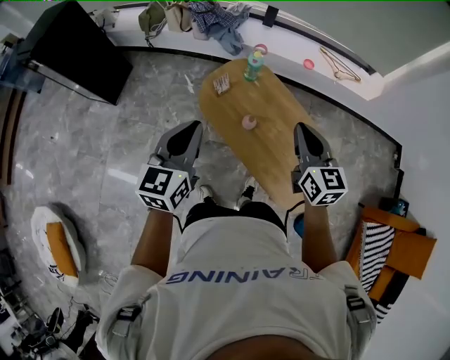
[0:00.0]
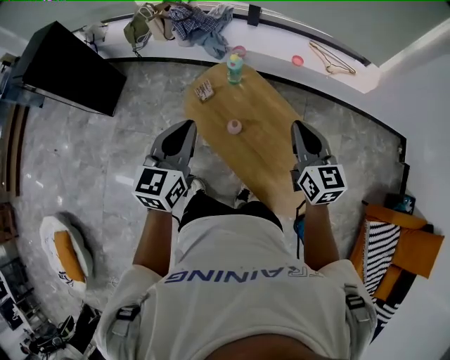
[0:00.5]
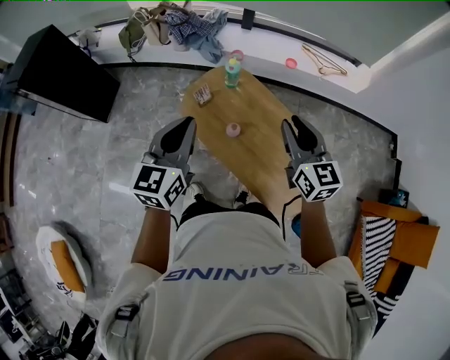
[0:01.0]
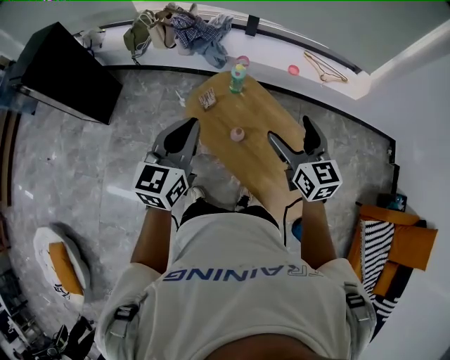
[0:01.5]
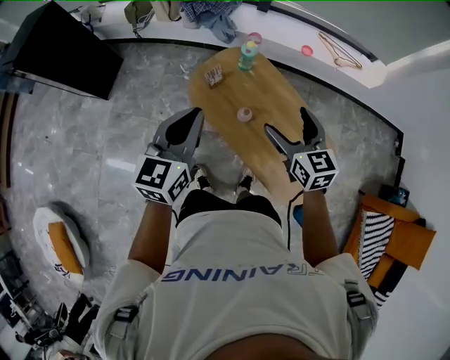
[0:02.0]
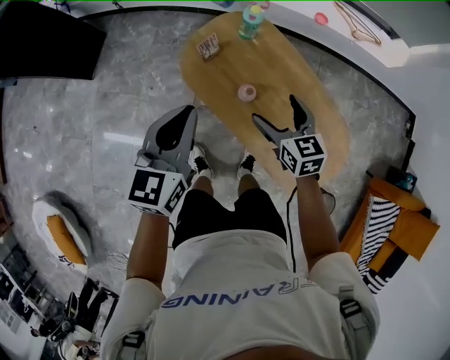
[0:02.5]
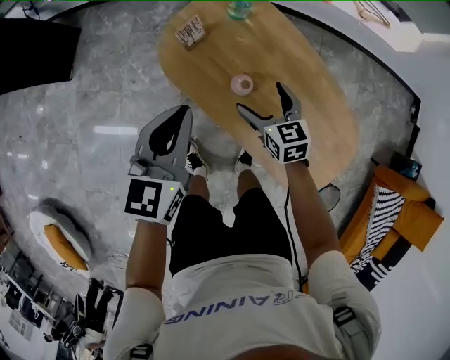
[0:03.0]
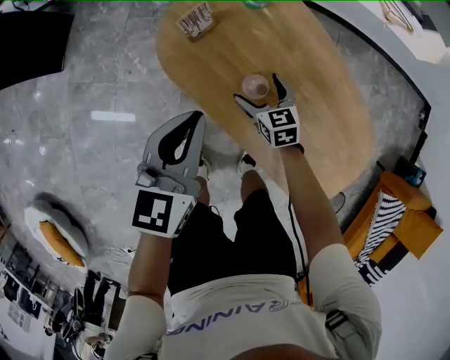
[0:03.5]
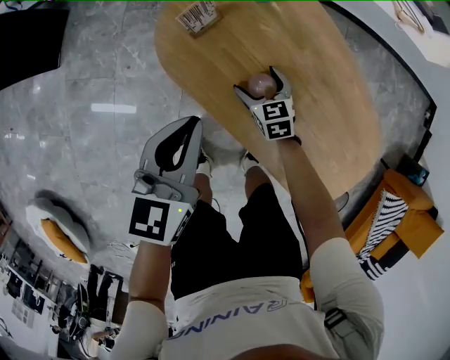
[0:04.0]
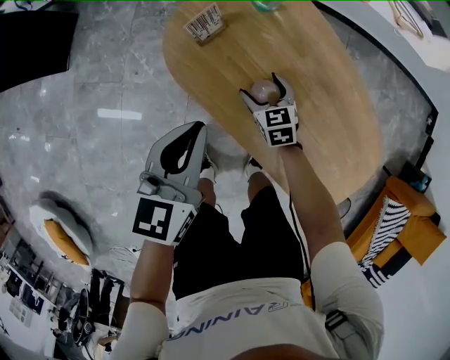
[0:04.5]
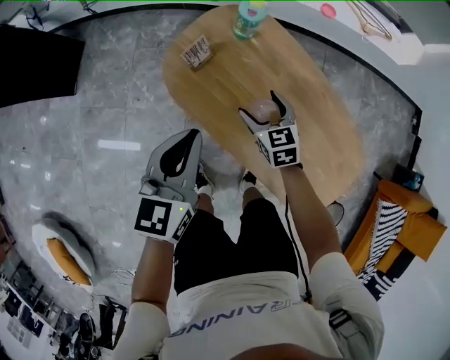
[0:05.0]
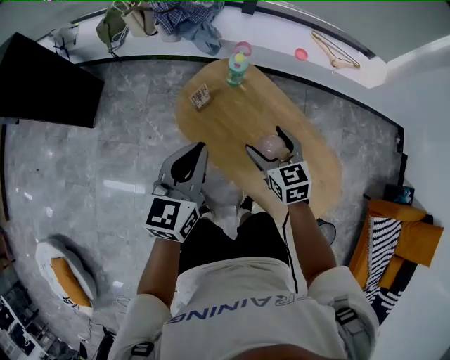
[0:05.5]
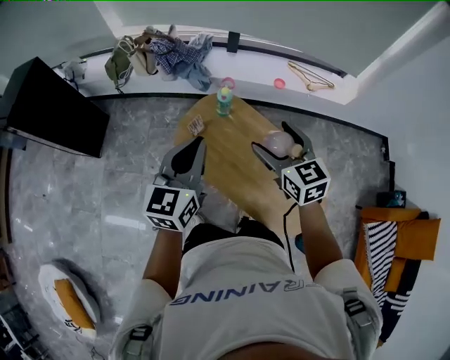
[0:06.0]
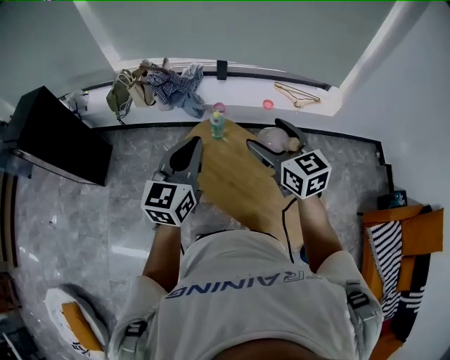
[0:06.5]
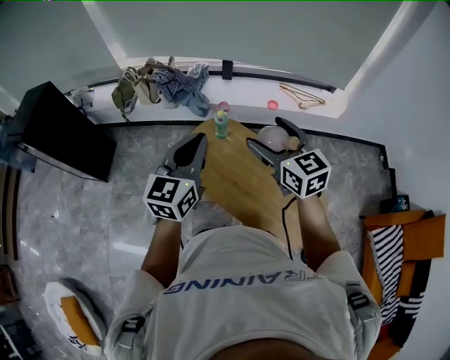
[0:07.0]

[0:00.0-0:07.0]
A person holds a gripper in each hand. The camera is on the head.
0.0 to 2.0 s: The left gripper goes roughly 5 cm forward, and reaches roughly 10 cm to the right, then returns, while the right gripper shifts about 5 cm downward, reaches roughly 10 cm to the right, then returns, and opens its fingers.
2.0 to 3.5 s: The left gripper shifts approximately 30 cm downward. The right gripper is displaced downward by approximately 50 cm, and rotates roughly 20 degrees.
3.5 to 5.0 s: The right gripper is displaced upward by roughly 10 cm; the left gripper heads upward, covering approximately 5 cm.
5.0 to 7.0 s: The grippers both shift upward by some 40 cm. The left gripper rotates about 20 degrees. The right gripper changes its angle by some 30 degrees.

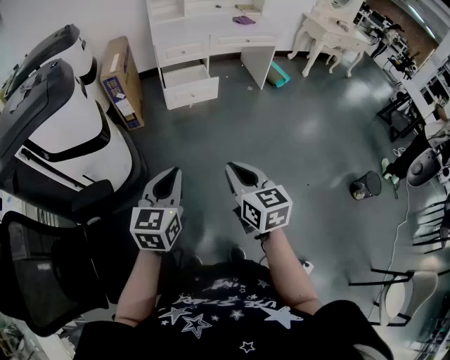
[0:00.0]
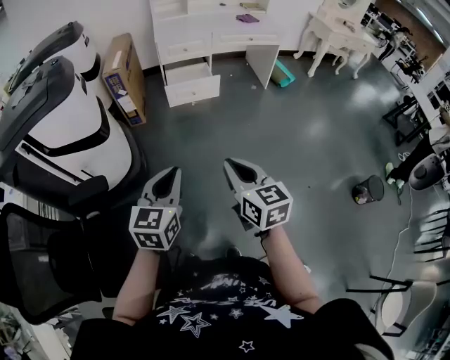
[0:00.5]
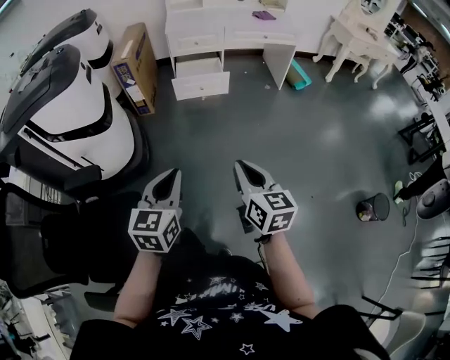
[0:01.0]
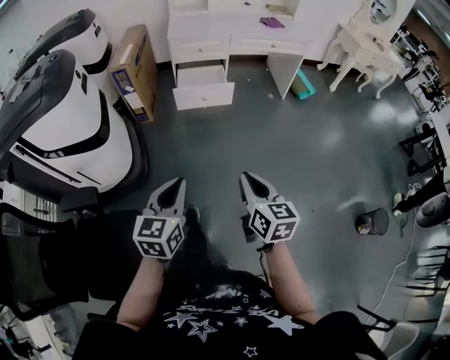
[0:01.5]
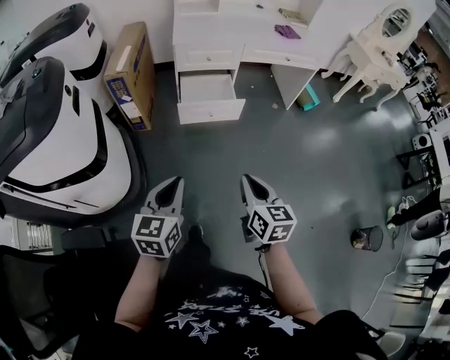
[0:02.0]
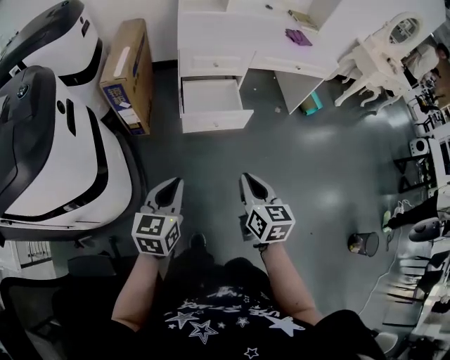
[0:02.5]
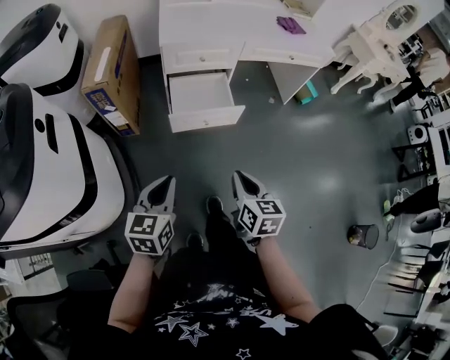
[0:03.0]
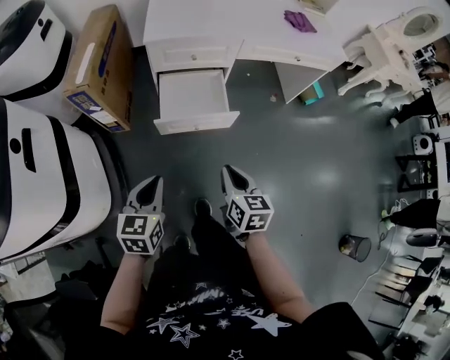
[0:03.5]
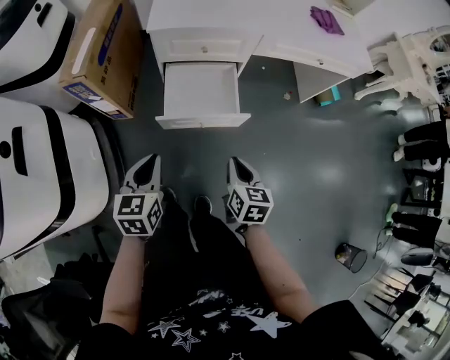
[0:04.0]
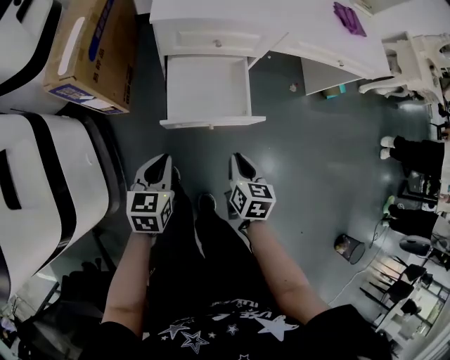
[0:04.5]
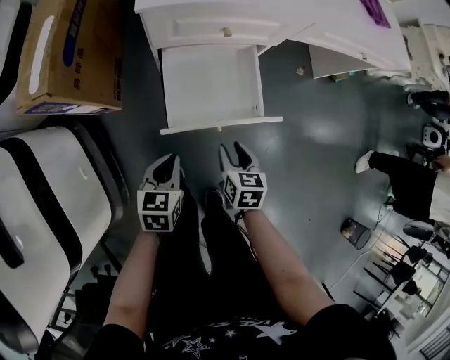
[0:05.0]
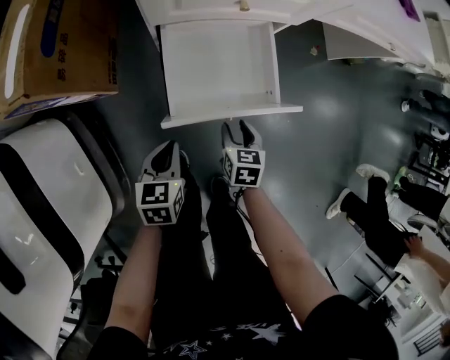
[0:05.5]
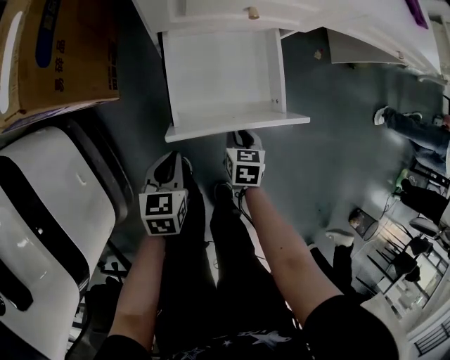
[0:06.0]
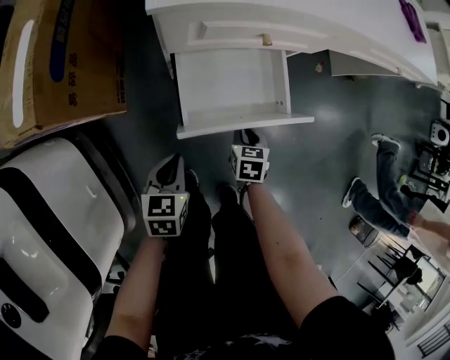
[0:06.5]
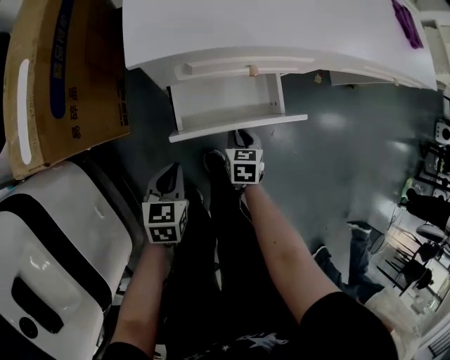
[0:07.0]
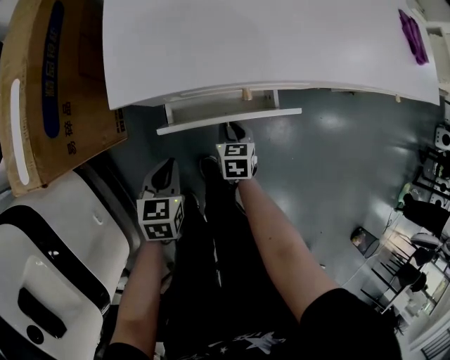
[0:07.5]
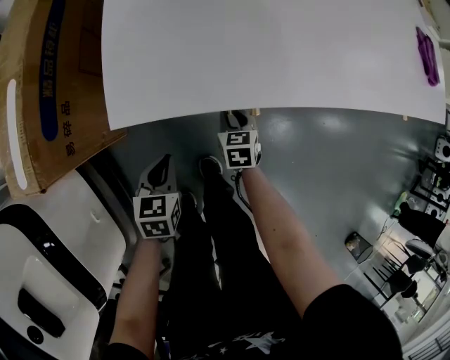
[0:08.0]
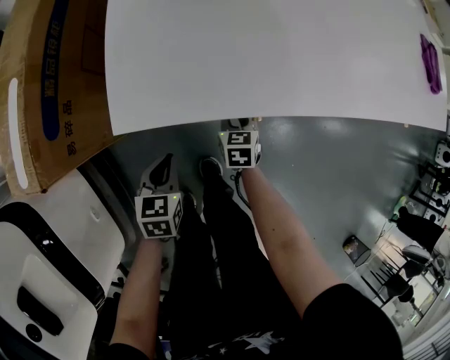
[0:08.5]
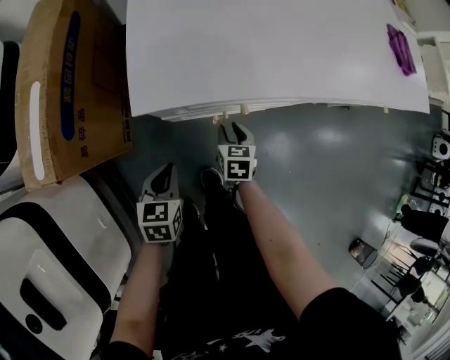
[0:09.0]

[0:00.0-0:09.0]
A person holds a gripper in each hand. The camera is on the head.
0.0 to 2.0 s: The two grippers go approximately 25 cm forward.
2.0 to 4.5 s: The two grippers go about 40 cm forward and downward. The left gripper swivels roughly 20 degrees; the right gripper changes its angle by about 20 degrees.
4.5 to 7.0 s: The right gripper travels downward, forward and to the left by some 30 cm. The left gripper heads downward and forward, covering roughly 20 cm.
7.0 to 9.0 s: Both grippers travel together forward, approximately 10 cm.

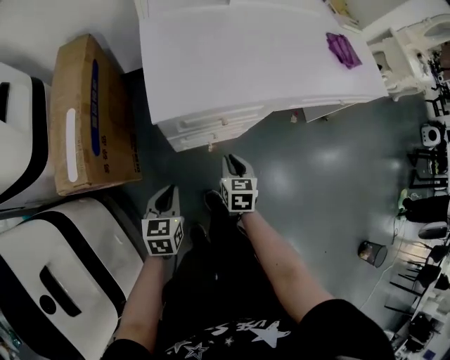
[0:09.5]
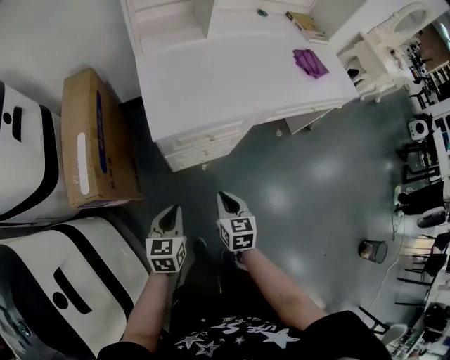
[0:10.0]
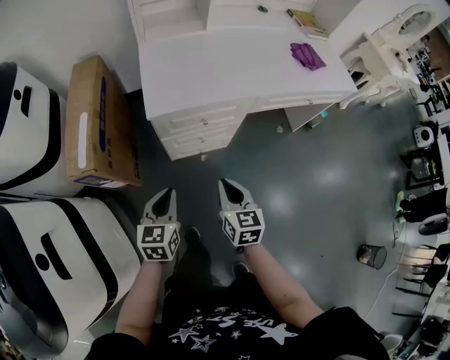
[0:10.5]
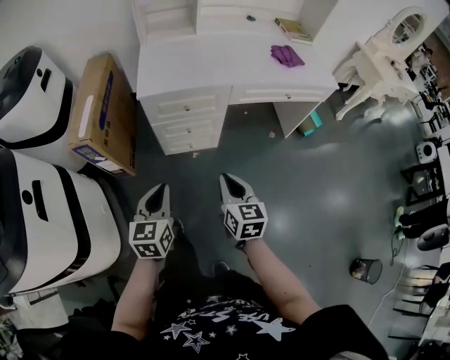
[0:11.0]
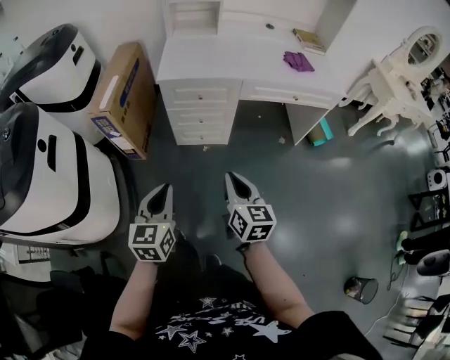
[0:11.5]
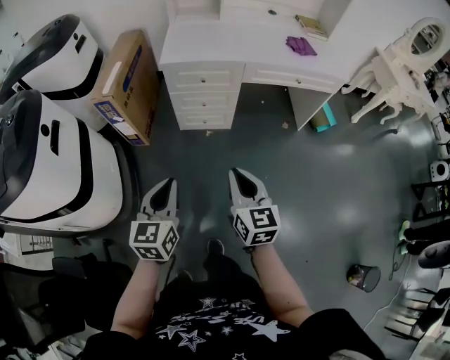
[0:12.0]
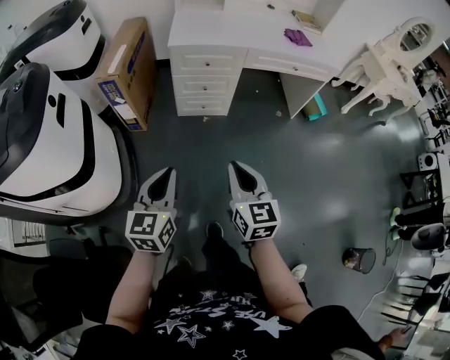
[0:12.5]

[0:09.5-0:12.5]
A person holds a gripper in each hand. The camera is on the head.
9.5 to 11.0 s: The two grippers go some 35 cm backward, upward and to the right. The right gripper rotates roughly 20 degrees.
11.0 to 12.5 s: Both grippers travel together backward, approximately 25 cm.

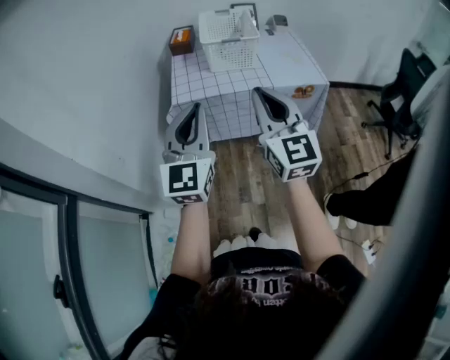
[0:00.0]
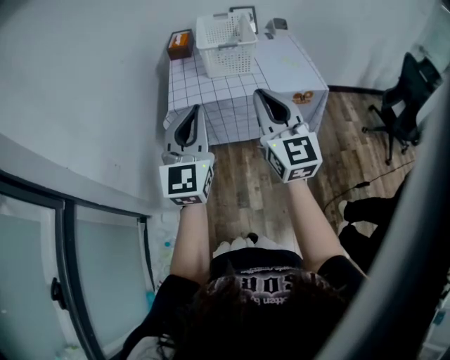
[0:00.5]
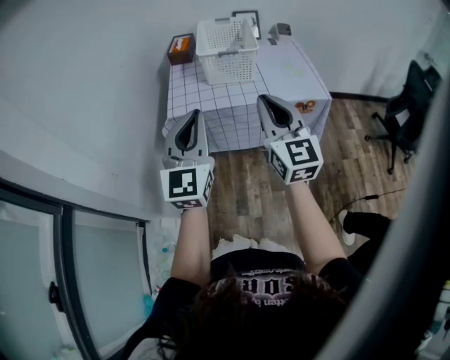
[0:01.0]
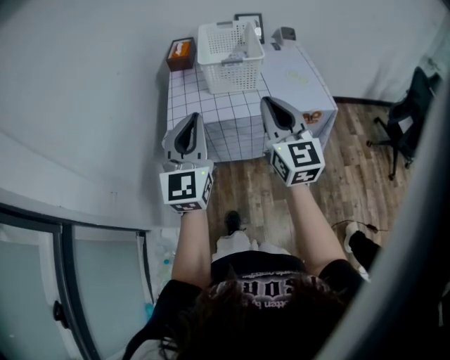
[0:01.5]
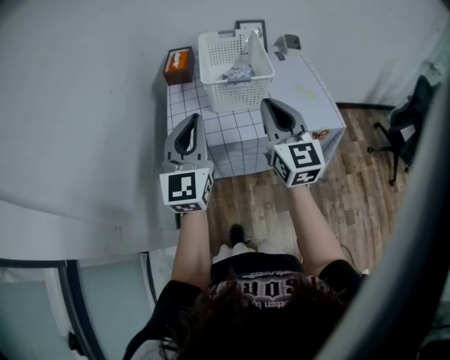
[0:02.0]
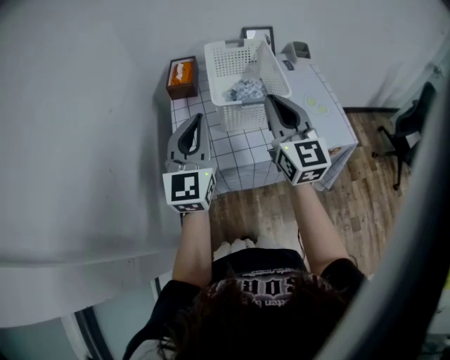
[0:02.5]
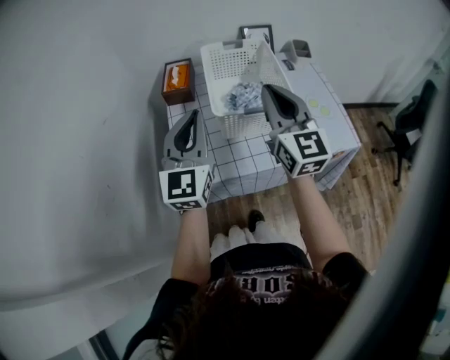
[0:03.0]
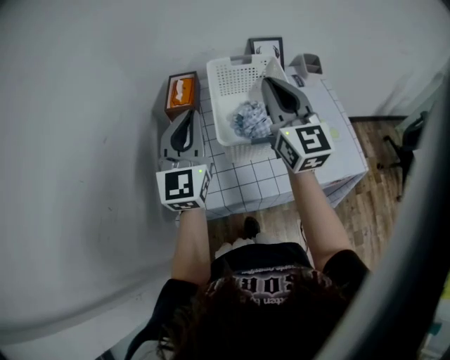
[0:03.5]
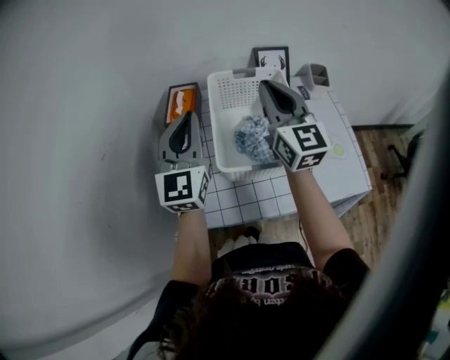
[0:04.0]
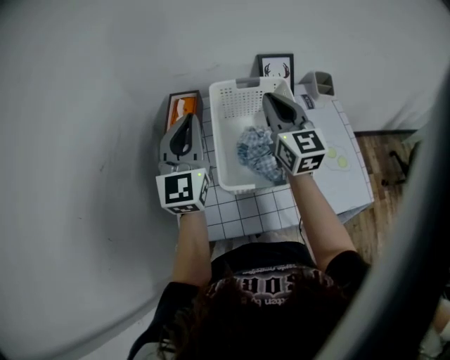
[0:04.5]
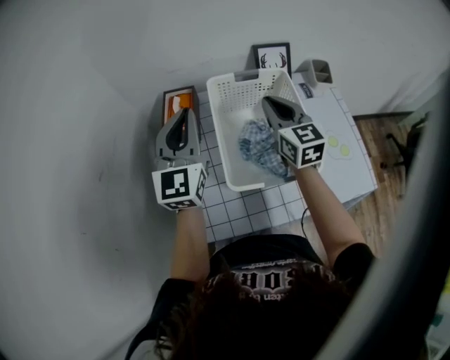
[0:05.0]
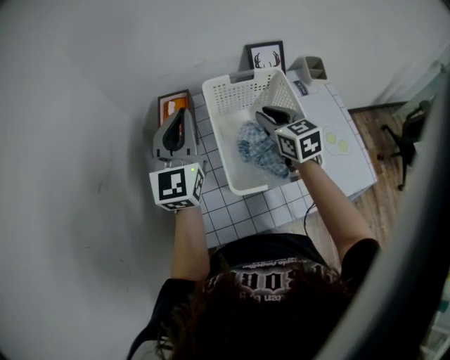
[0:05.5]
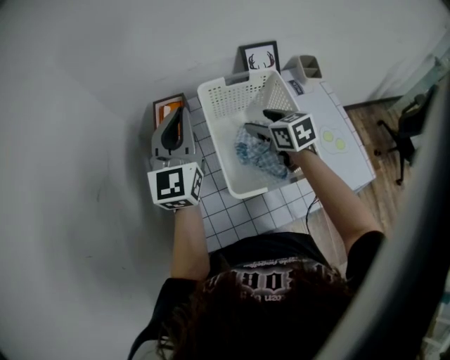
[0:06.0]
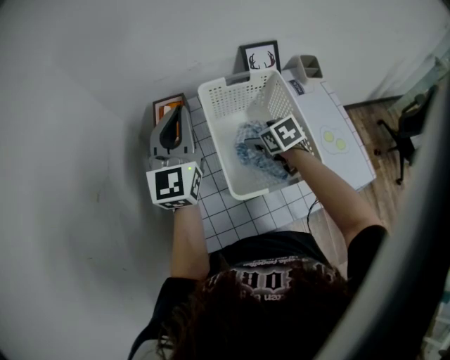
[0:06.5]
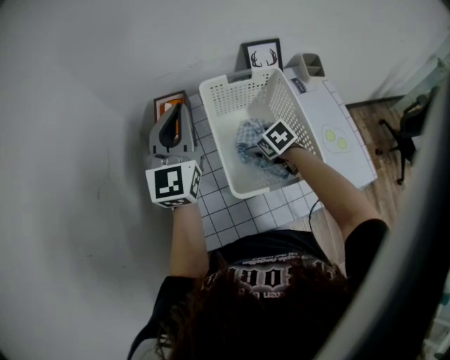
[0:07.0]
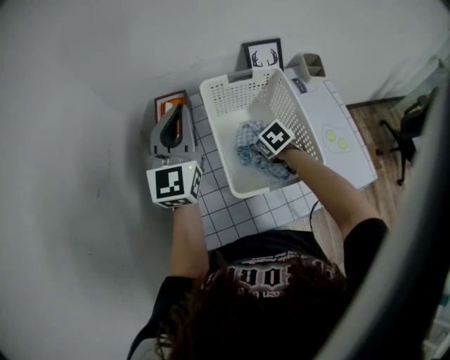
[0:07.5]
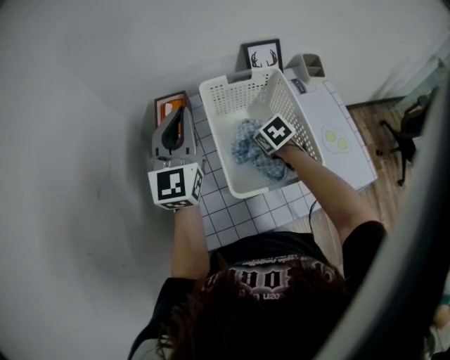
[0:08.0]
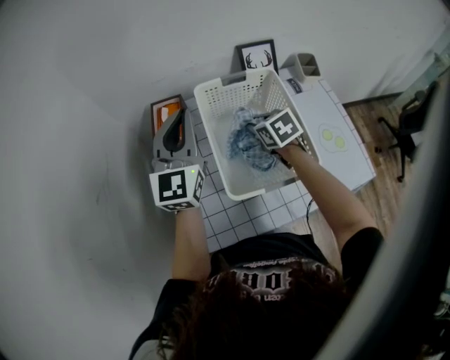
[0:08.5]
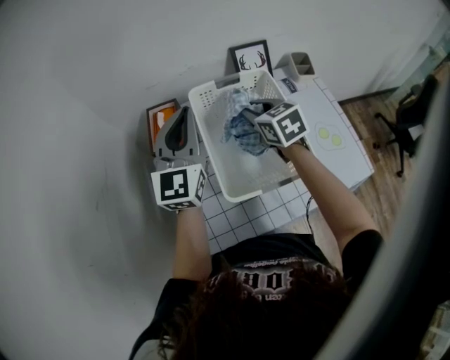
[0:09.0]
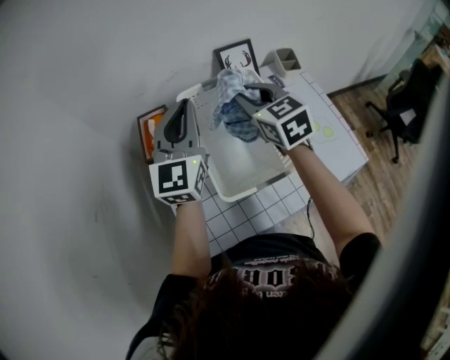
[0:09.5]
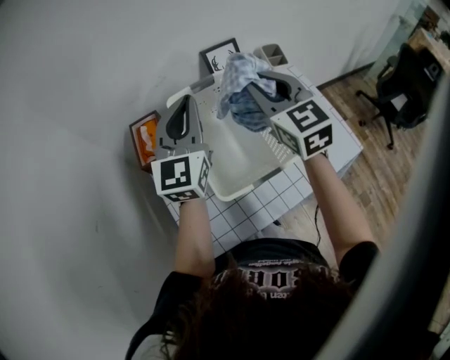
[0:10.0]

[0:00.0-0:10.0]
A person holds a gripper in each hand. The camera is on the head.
0.0 to 2.0 s: Both grippers travel together forward, about 25 cm.
2.0 to 4.0 s: The two grippers go some 30 cm forward.
4.0 to 6.0 s: The right gripper heads downward, covering about 20 cm, points its fingers approximately 40 degrees further downward, and opens up; the left gripper travels forward by roughly 10 cm.
6.0 to 8.0 s: The right gripper travels downward by some 10 cm, rotates roughly 30 degrees, and closes up.
8.0 to 10.0 s: The left gripper heads to the right, covering roughly 10 cm. The right gripper is displaced upward by roughly 30 cm, and angles its fingers upward, by roughly 50 degrees.
